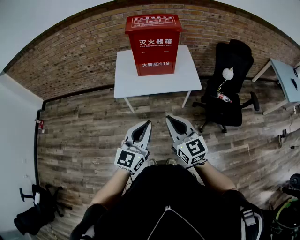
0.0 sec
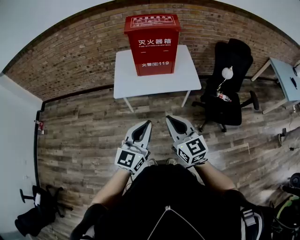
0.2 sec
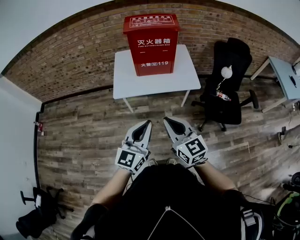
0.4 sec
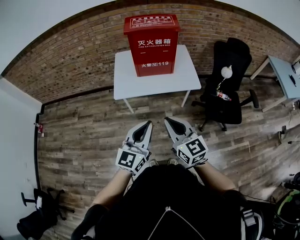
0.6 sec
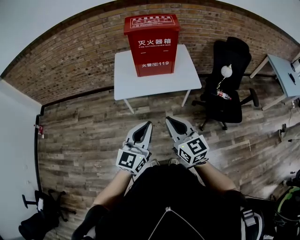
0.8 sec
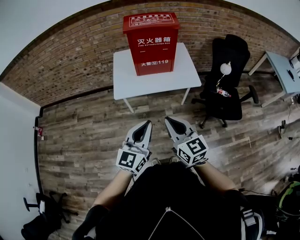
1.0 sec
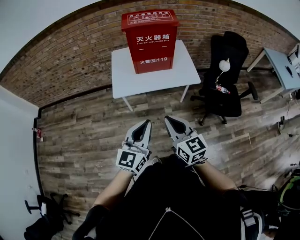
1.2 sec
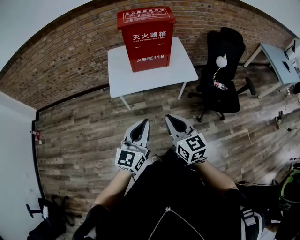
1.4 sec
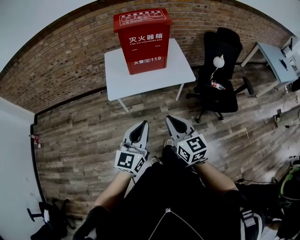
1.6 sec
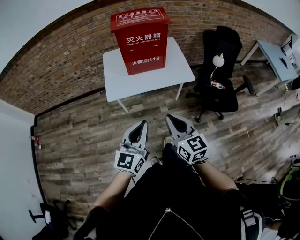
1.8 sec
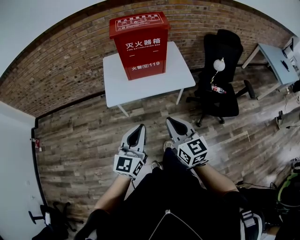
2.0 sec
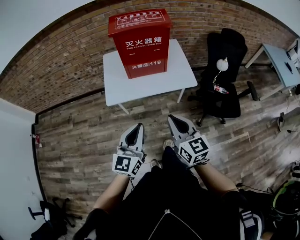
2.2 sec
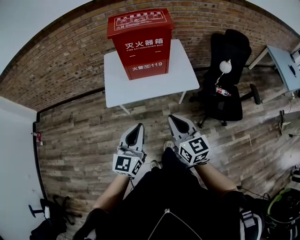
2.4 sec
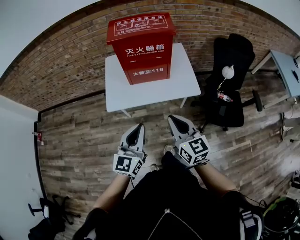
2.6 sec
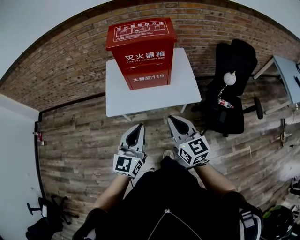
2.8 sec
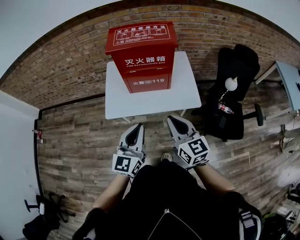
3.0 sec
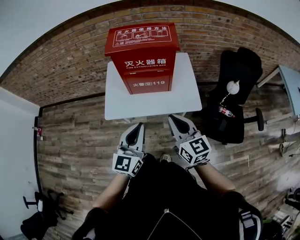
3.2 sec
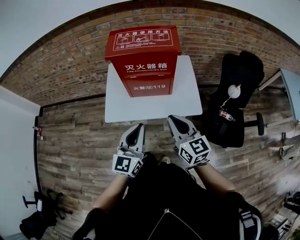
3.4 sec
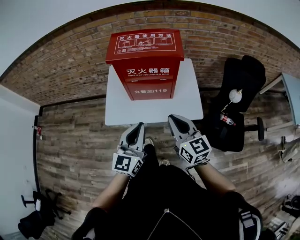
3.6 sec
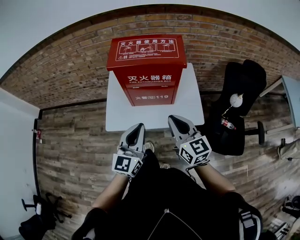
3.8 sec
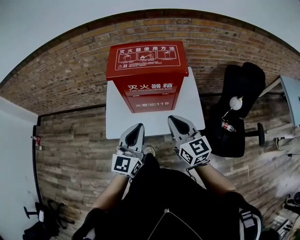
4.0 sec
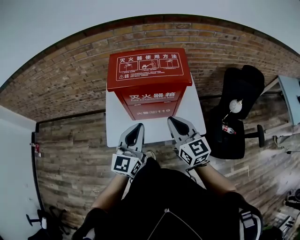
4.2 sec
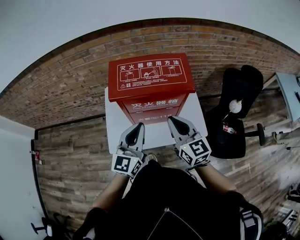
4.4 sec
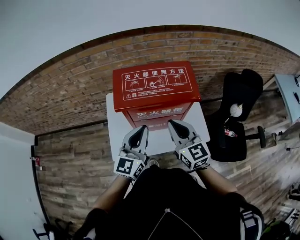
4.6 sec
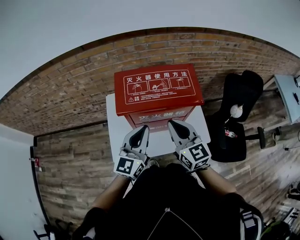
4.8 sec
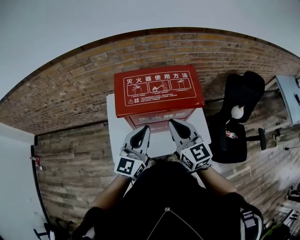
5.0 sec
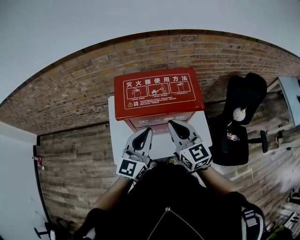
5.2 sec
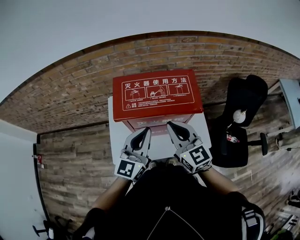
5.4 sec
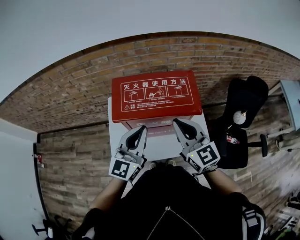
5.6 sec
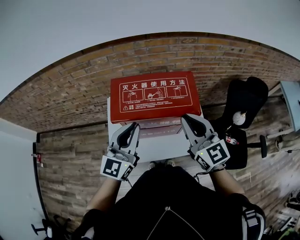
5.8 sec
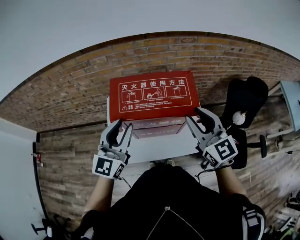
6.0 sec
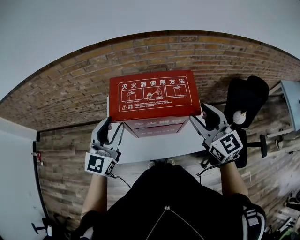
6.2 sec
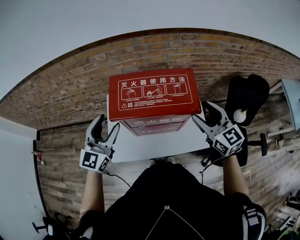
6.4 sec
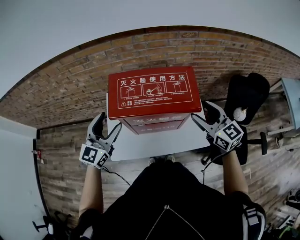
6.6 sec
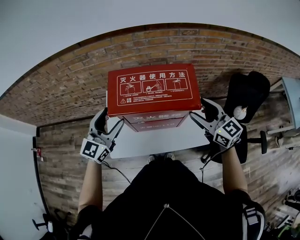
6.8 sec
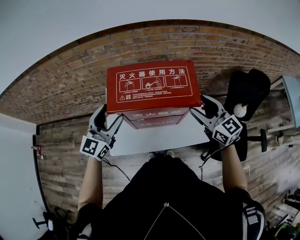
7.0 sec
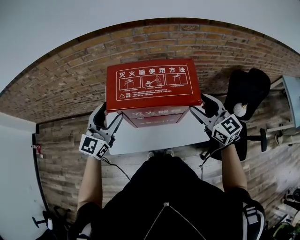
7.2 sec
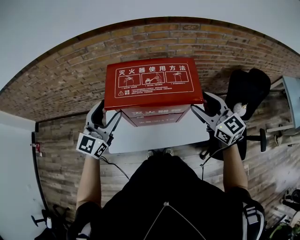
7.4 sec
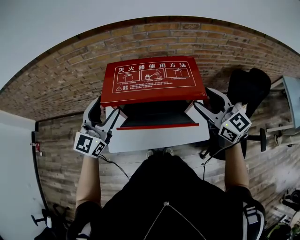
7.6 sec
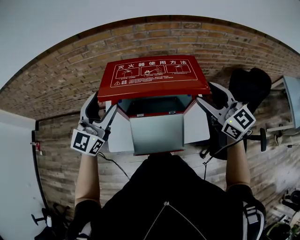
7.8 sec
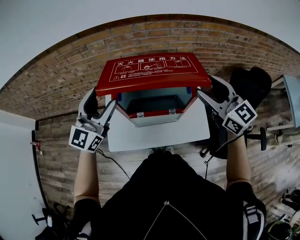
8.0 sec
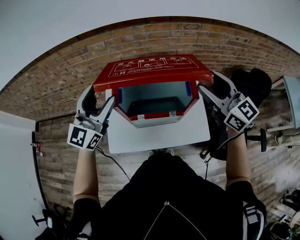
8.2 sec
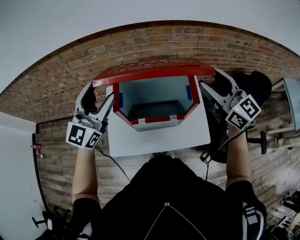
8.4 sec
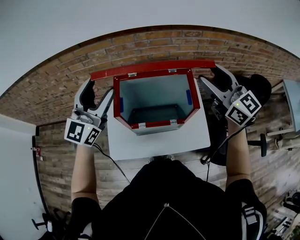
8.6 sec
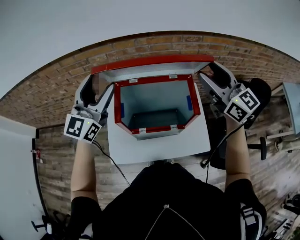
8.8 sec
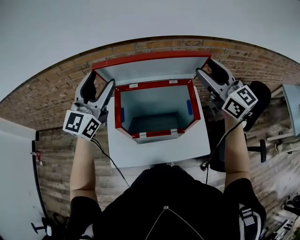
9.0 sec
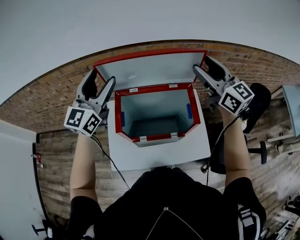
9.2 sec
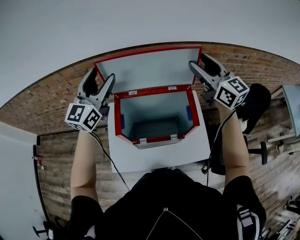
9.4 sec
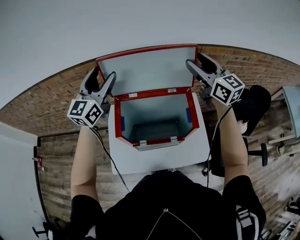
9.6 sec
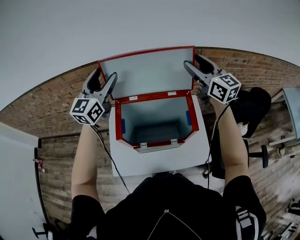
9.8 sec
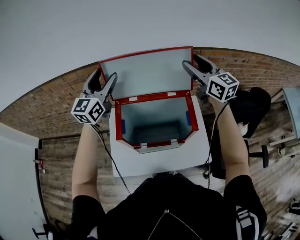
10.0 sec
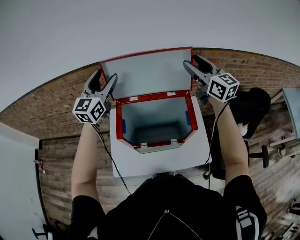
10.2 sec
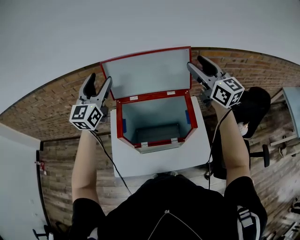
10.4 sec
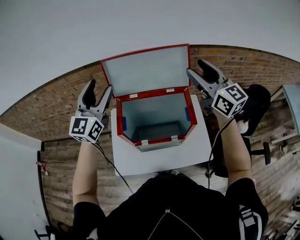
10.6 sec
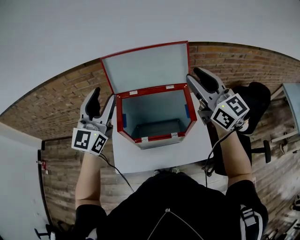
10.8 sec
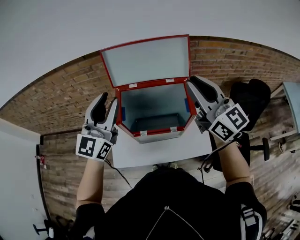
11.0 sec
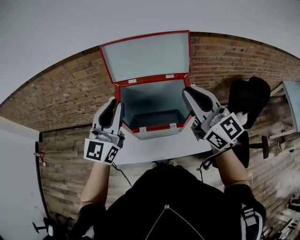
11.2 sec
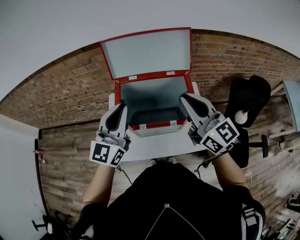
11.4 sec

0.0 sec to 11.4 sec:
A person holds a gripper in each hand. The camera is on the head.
0.0 sec to 1.4 sec: The right gripper moves approximately 5 cm. Meanwhile the left gripper travels to the left by about 5 cm.
1.4 sec to 2.8 sec: The left gripper travels forward by about 20 cm. Meanwhile the right gripper moves forward and to the right, some 20 cm.
2.8 sec to 4.2 sec: The two grippers go some 25 cm forward.
4.2 sec to 5.6 sec: Both grippers travel together forward and upward, roughly 10 cm.
5.6 sec to 7.2 sec: The right gripper goes some 10 cm to the right, and opens; the left gripper moves to the left and forward, approximately 10 cm, and opens.
7.2 sec to 8.6 sec: Both grippers travel together upward and forward, some 15 cm.
8.6 sec to 10.0 sec: Both grippers move forward, about 15 cm.
10.0 sec to 11.4 sec: Both grippers travel together backward, about 25 cm. The left gripper closes its fingers. The right gripper closes its fingers.

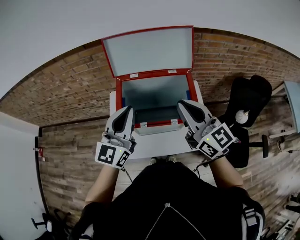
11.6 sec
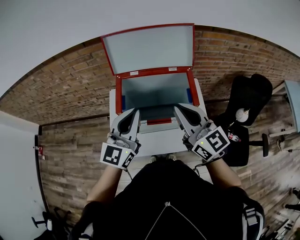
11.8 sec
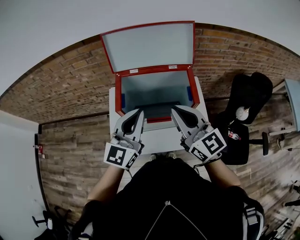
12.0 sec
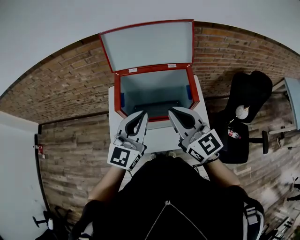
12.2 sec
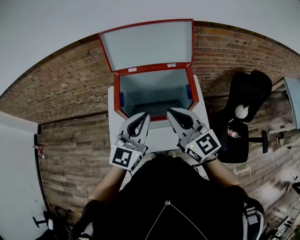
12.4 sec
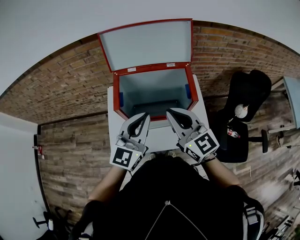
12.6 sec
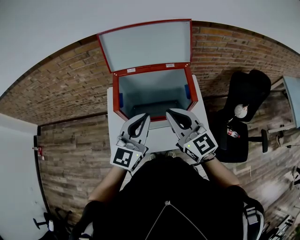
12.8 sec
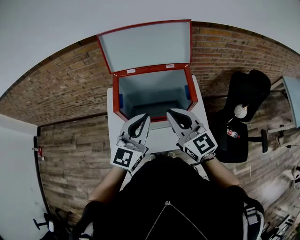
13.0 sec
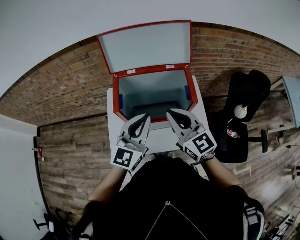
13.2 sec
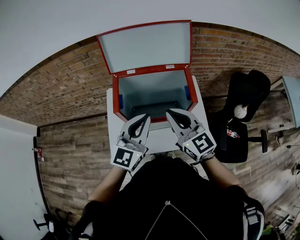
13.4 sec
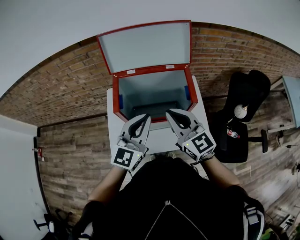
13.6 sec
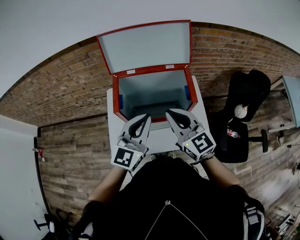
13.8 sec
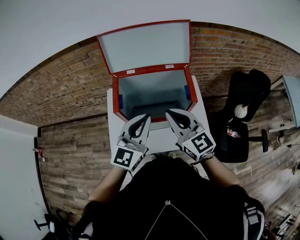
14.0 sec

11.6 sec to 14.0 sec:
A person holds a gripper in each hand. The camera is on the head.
11.6 sec to 12.8 sec: The left gripper is displaced downward and to the right by approximately 10 cm; the right gripper travels downward by roughly 5 cm.
12.8 sec to 14.0 sec: The grippers make only small movements.

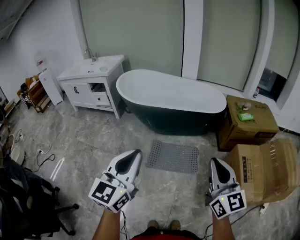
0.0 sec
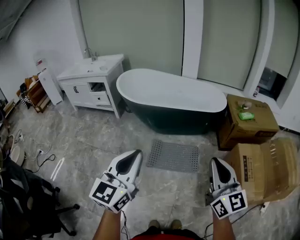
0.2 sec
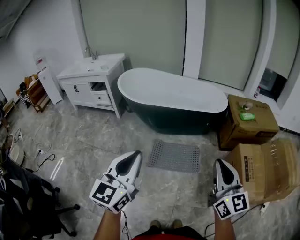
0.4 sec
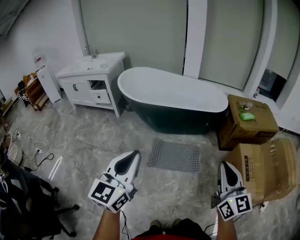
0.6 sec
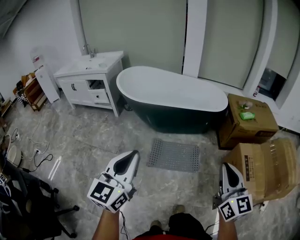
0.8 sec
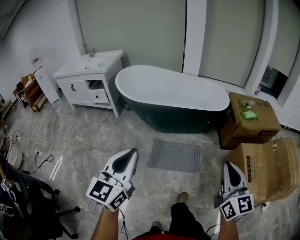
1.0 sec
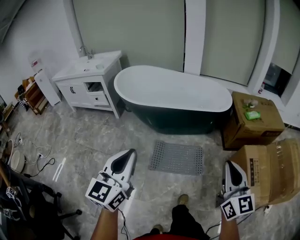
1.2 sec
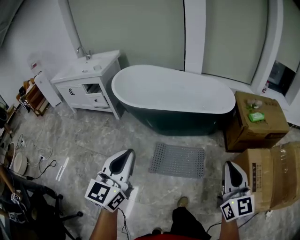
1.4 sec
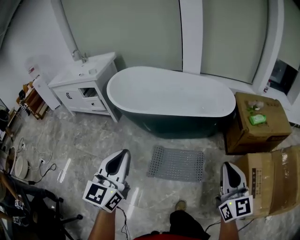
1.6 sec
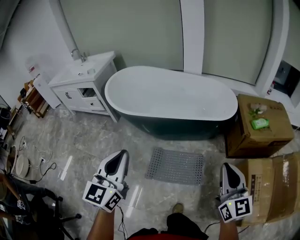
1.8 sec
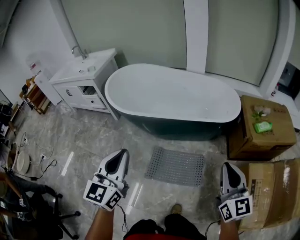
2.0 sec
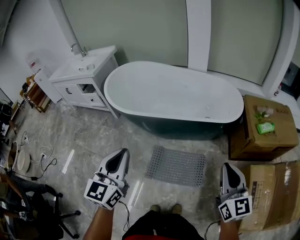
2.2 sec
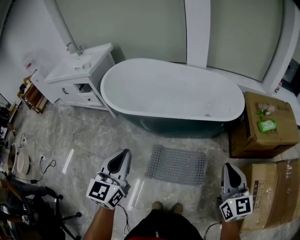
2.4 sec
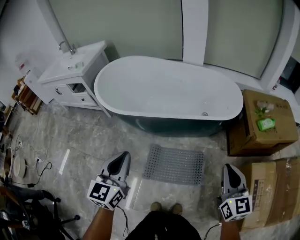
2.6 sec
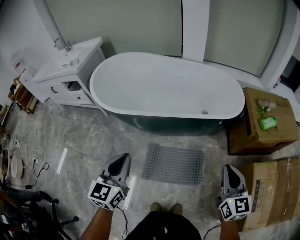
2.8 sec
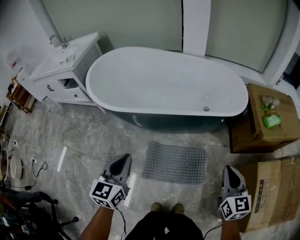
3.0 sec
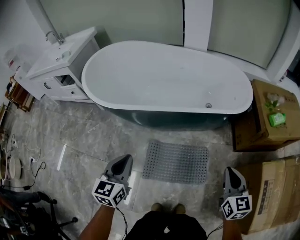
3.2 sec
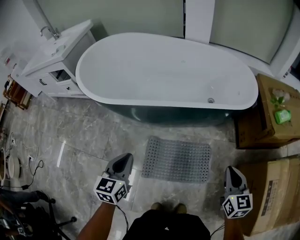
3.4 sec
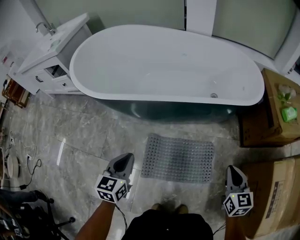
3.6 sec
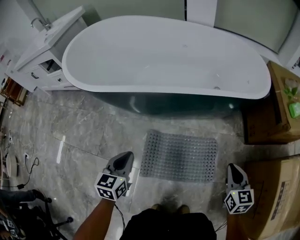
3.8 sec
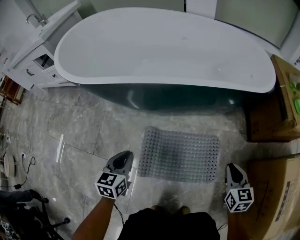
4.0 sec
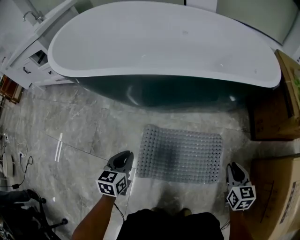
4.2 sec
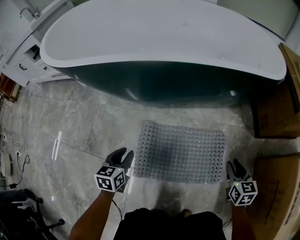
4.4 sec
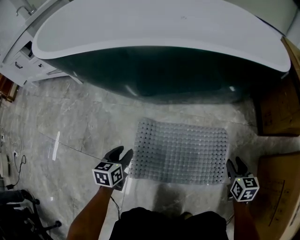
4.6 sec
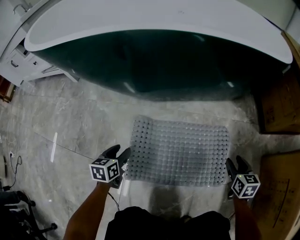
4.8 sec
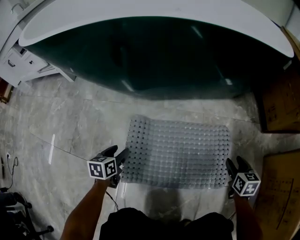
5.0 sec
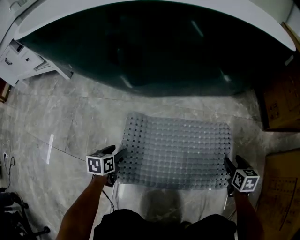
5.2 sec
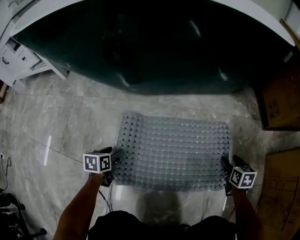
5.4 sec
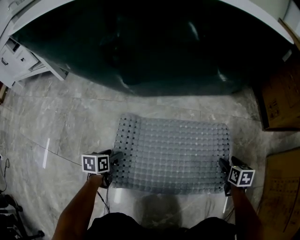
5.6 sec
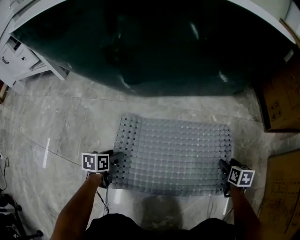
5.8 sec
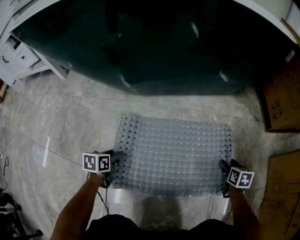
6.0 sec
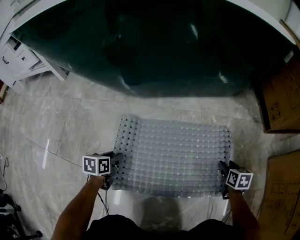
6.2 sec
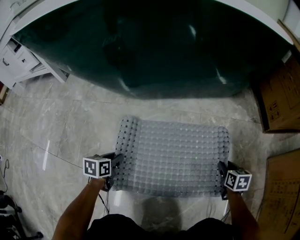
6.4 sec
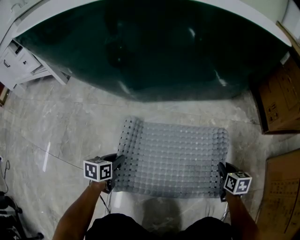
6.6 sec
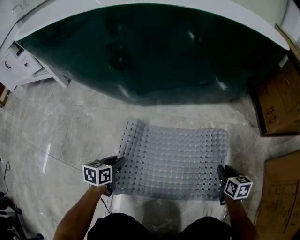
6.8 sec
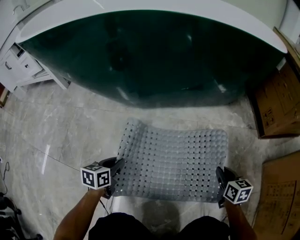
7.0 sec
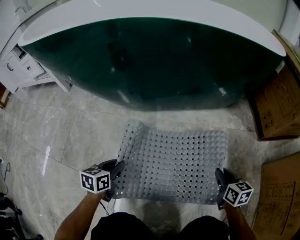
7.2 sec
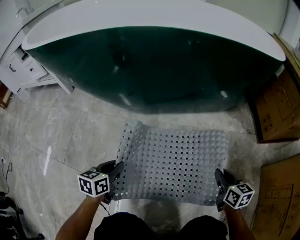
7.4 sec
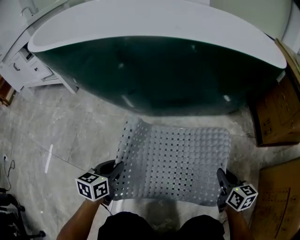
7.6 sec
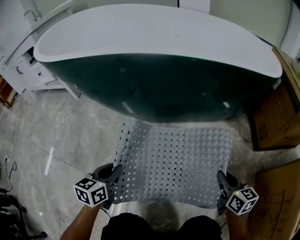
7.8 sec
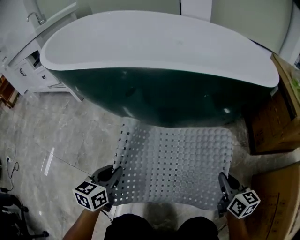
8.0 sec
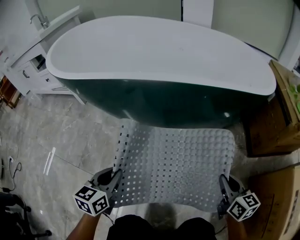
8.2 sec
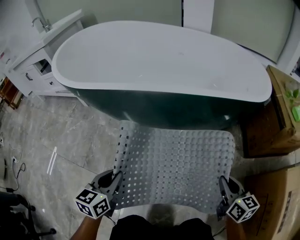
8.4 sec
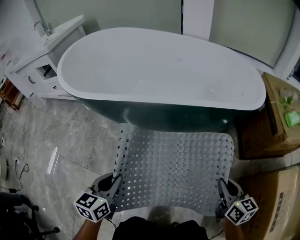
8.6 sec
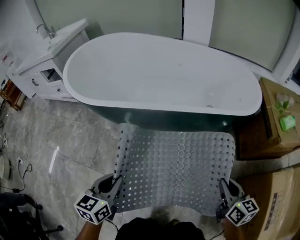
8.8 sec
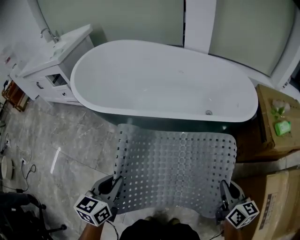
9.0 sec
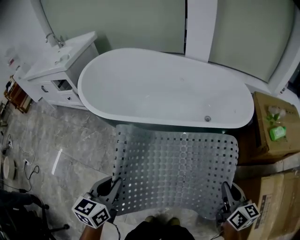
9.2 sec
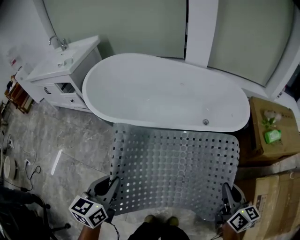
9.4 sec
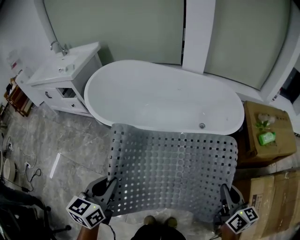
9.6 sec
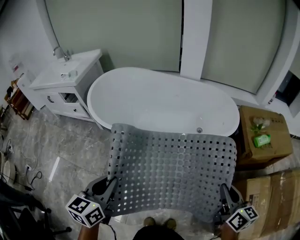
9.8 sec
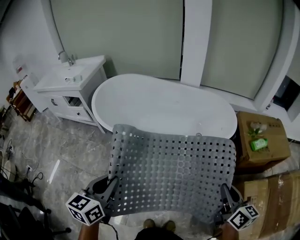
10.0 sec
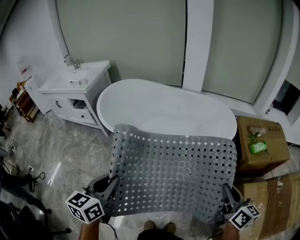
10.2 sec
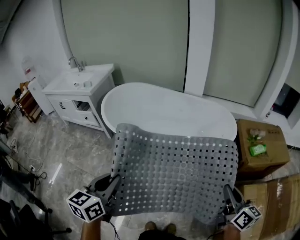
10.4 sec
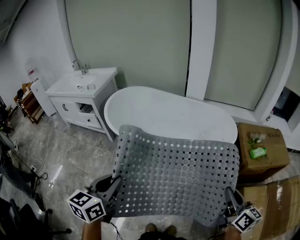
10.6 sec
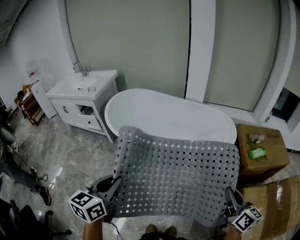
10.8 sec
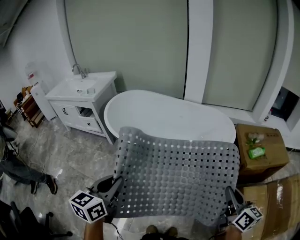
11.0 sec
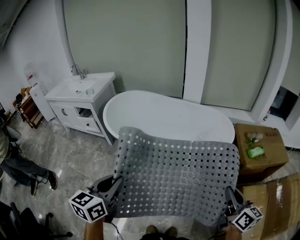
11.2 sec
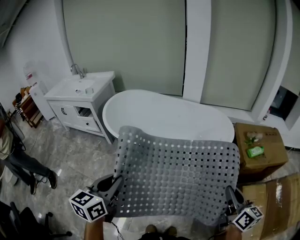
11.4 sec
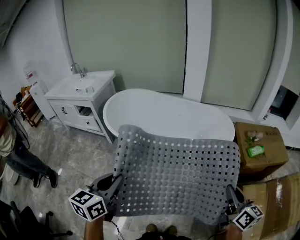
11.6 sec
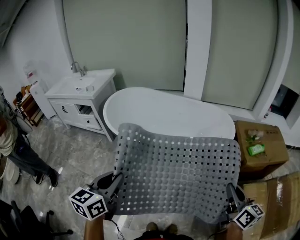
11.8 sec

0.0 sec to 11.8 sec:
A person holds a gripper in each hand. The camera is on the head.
0.0 sec to 1.4 sec: The two grippers go approximately 15 cm forward.
1.4 sec to 3.0 sec: Both grippers move forward and downward, roughly 35 cm.
3.0 sec to 4.4 sec: The grippers both shift downward by about 50 cm. The left gripper swivels roughly 30 degrees. Meanwhile the right gripper changes its angle by approximately 20 degrees, and opens its fingers.
4.4 sec to 6.0 sec: Both grippers move downward, some 30 cm. The right gripper turns by about 20 degrees, and opens, while the left gripper swivels about 20 degrees, and opens its fingers.
6.0 sec to 7.4 sec: The right gripper shifts some 15 cm upward and to the left, rotates some 20 degrees, and closes its fingers. The left gripper travels upward by approximately 15 cm, and closes.
7.4 sec to 8.8 sec: The two grippers go approximately 40 cm upward.
8.8 sec to 10.4 sec: The two grippers go about 40 cm upward.
10.4 sec to 11.8 sec: There are only small adjustments of the grippers.
